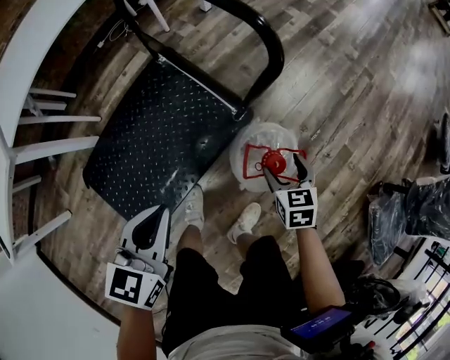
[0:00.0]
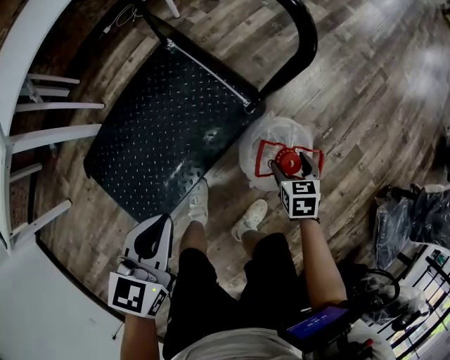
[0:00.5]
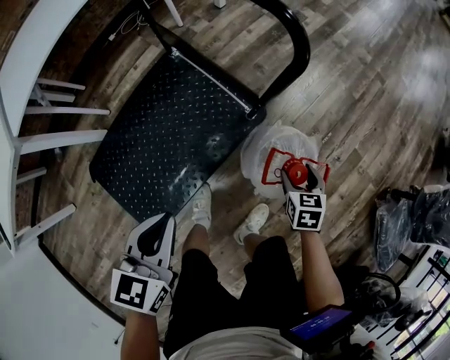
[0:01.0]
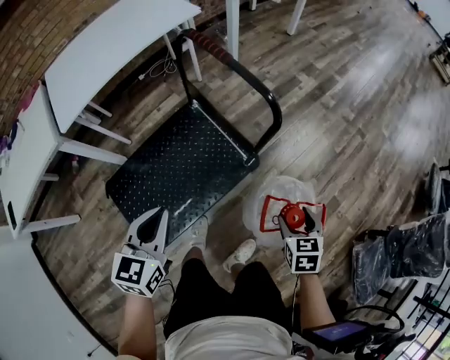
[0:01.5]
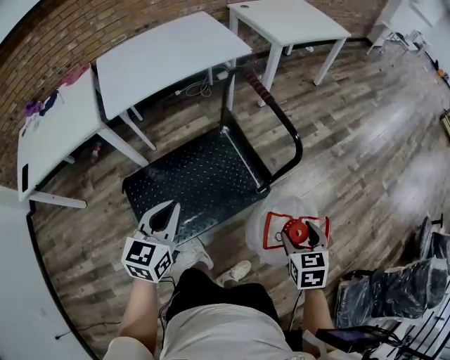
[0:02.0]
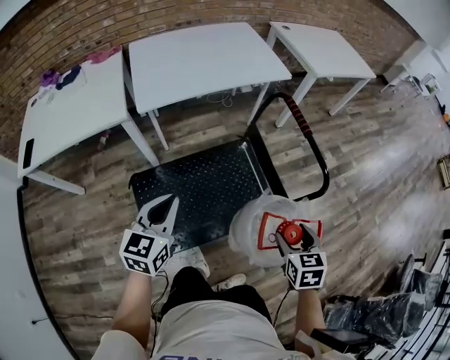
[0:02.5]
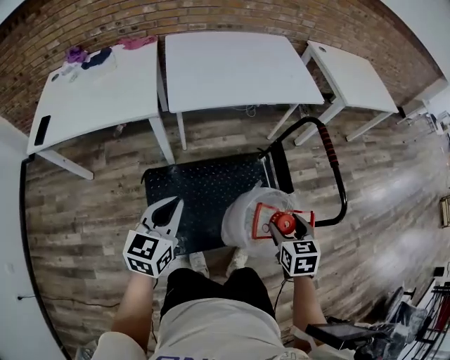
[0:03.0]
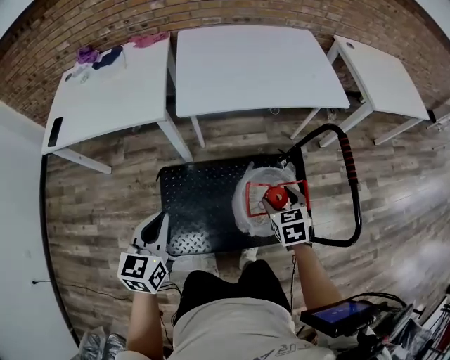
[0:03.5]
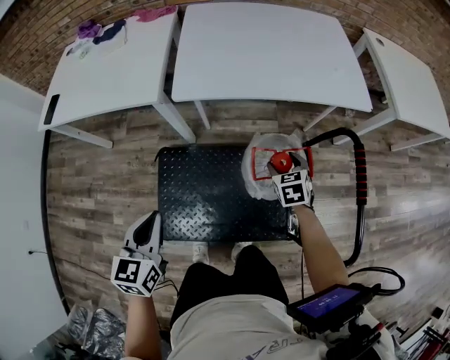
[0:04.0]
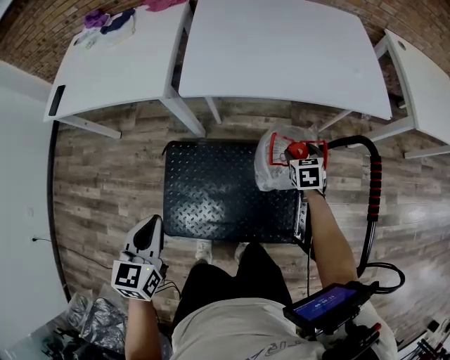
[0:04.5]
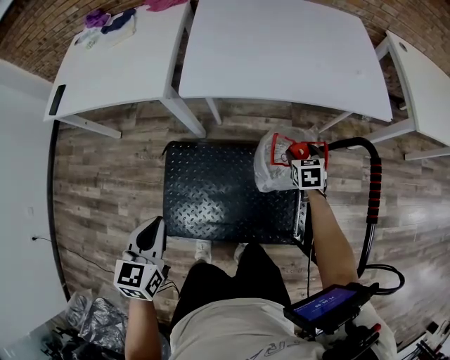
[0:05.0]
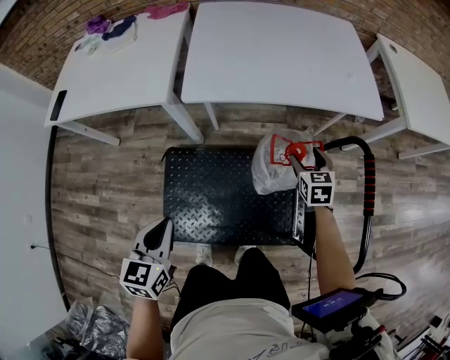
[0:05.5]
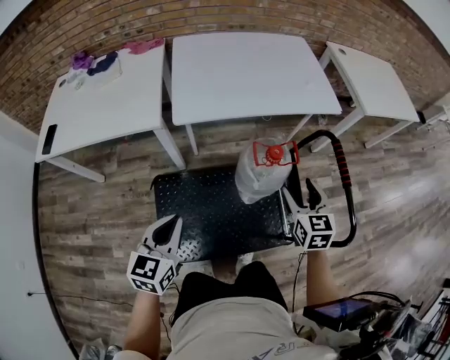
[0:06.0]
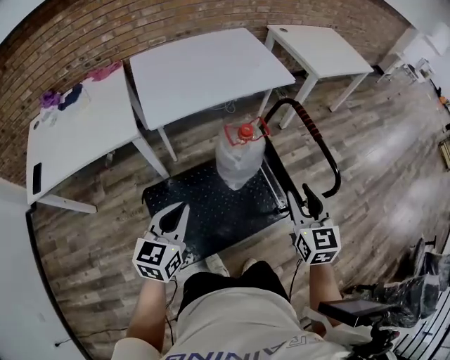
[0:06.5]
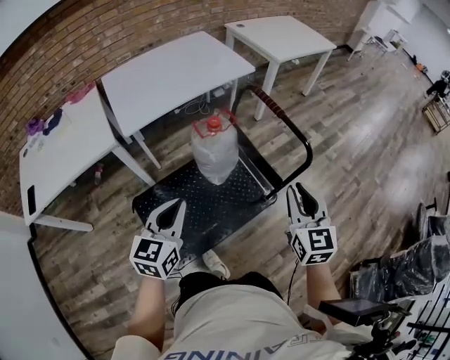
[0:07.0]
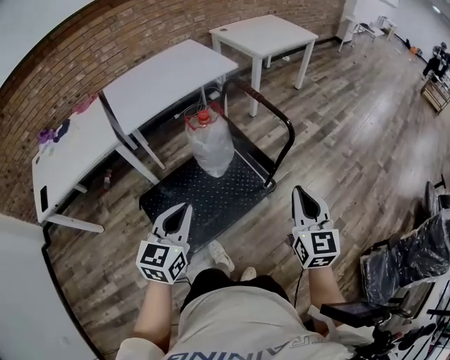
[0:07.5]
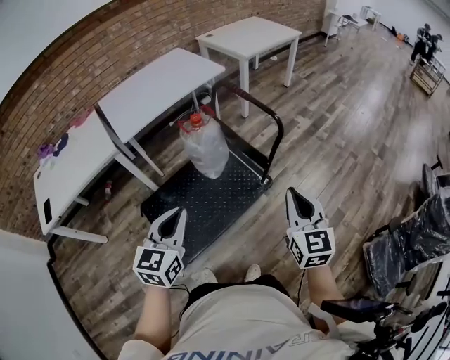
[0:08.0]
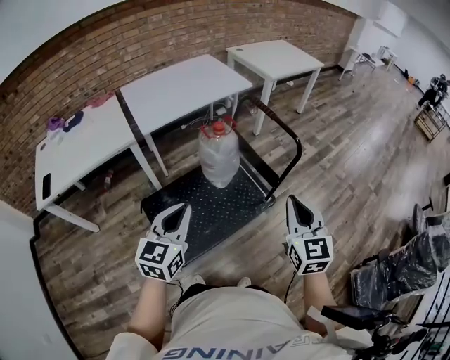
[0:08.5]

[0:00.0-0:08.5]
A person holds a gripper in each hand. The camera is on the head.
0:00.0 to 0:02.0: The left gripper is displaced upward and to the left by roughly 20 cm, and changes its angle by about 20 degrees. The right gripper moves upward, roughly 30 cm.
0:02.0 to 0:04.0: The right gripper moves some 60 cm, and changes its angle by about 40 degrees. The left gripper ends up roughly 25 cm from where it was, and swivels roughly 40 degrees.
0:04.0 to 0:06.5: The left gripper moves upward, approximately 5 cm, and rotates about 40 degrees. The right gripper travels upward by about 25 cm, and angles its fingers upward, by some 30 degrees.
0:06.5 to 0:08.5: The left gripper shifts roughly 20 cm backward, to the right and upward, while the right gripper heads backward, covering about 25 cm, and closes.

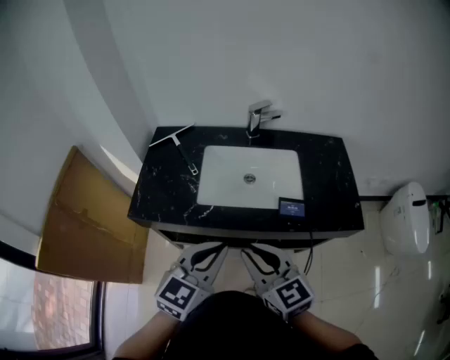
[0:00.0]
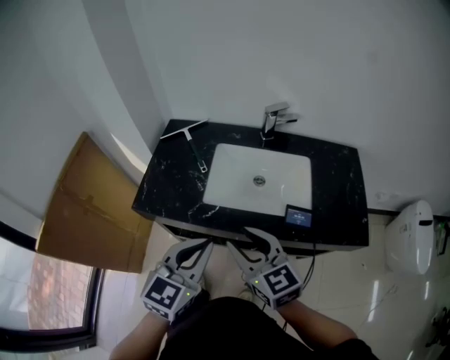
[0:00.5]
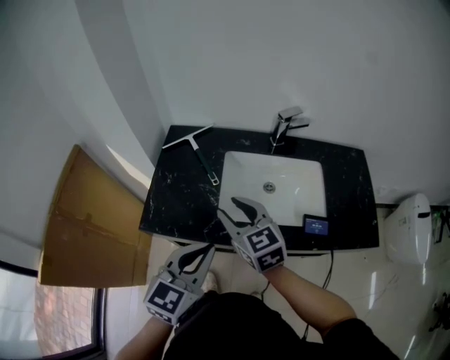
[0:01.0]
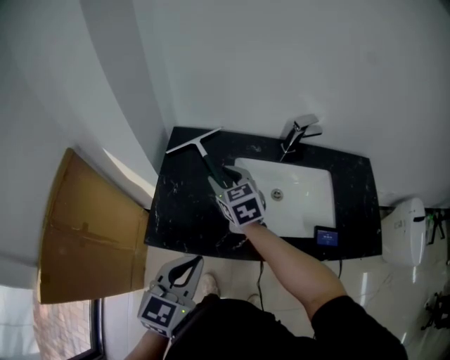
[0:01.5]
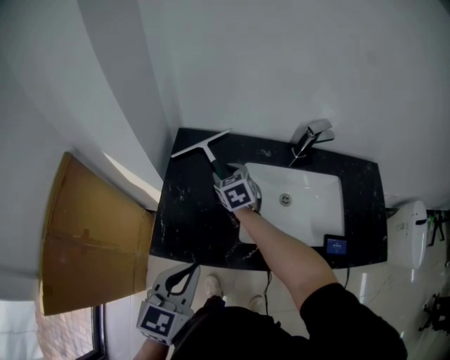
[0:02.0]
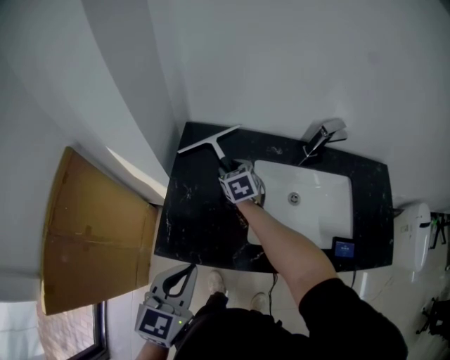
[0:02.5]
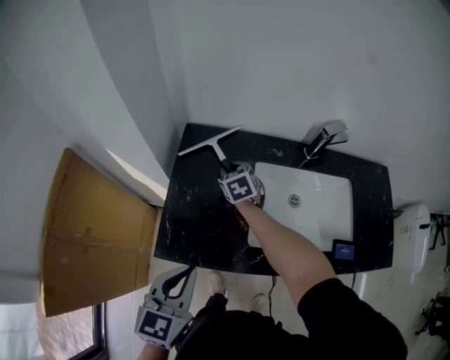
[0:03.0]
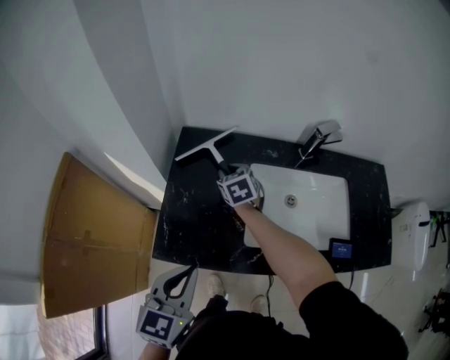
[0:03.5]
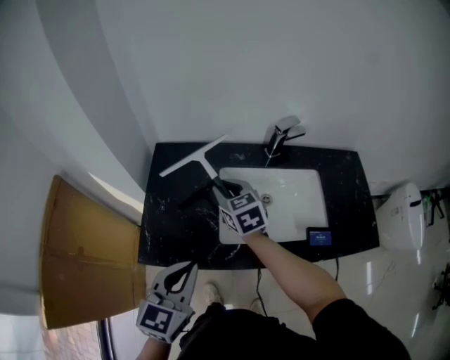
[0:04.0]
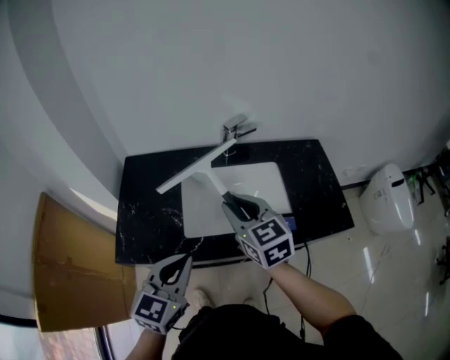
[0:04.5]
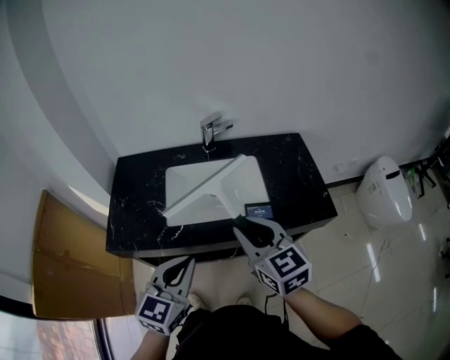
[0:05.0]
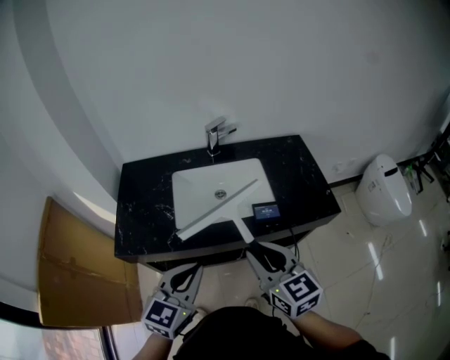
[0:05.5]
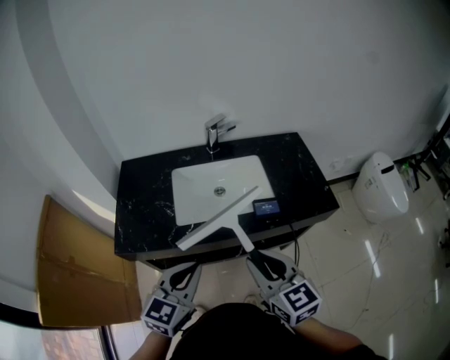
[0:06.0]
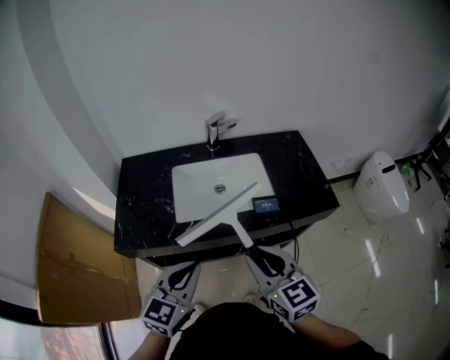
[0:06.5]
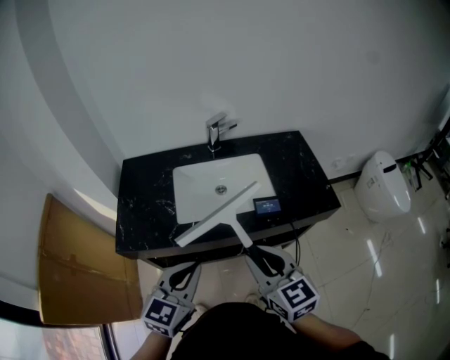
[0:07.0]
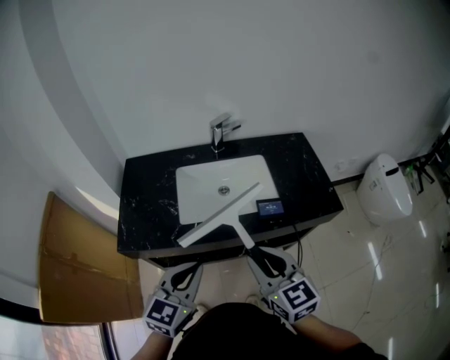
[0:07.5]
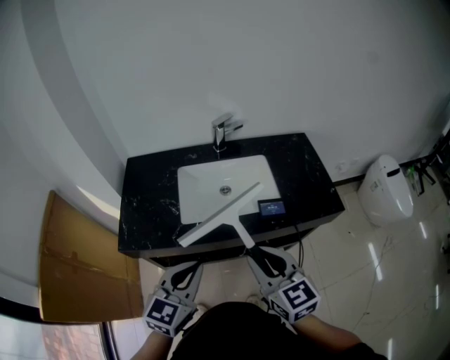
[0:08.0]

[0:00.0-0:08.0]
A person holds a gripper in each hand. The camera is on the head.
0:00.0 to 0:02.0: The left gripper goes roughly 25 cm to the left and forward. The right gripper moves forward and to the left, about 50 cm, turns by approximately 30 degrees, and opens up.
0:02.0 to 0:04.0: The right gripper heads upward, to the right and backward, covering approximately 15 cm. Meanwhile the left gripper moves roughly 5 cm.
0:04.0 to 0:06.0: The left gripper goes roughly 20 cm to the right and backward, while the right gripper moves backward and to the right, some 40 cm.
0:06.0 to 0:08.0: The two grippers keep their place.
